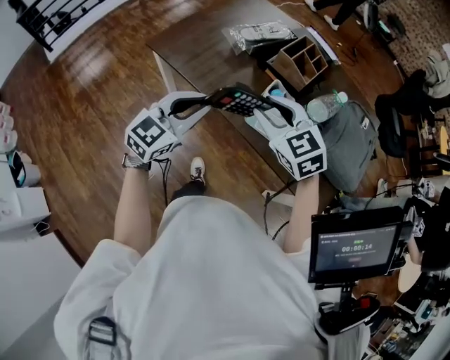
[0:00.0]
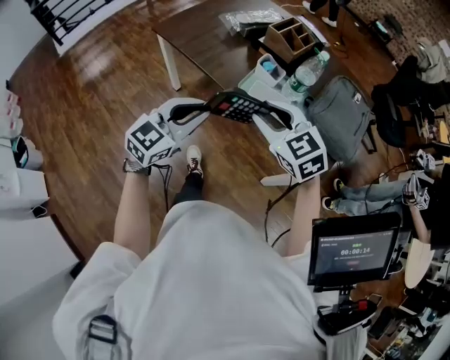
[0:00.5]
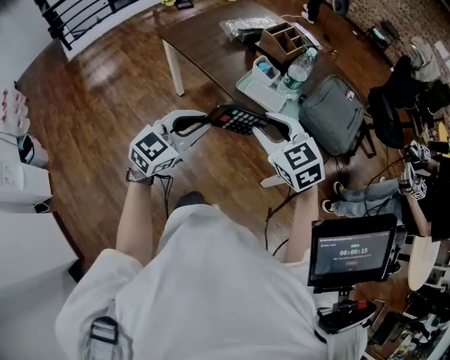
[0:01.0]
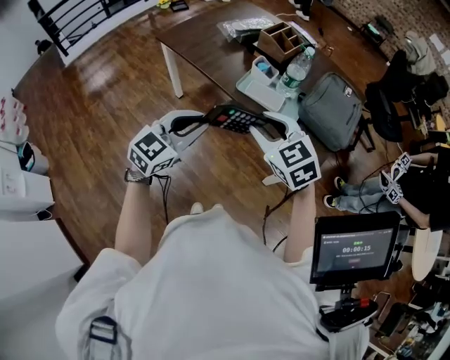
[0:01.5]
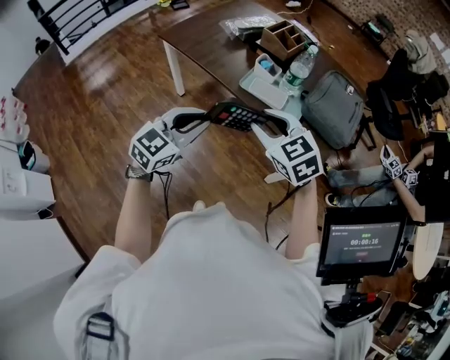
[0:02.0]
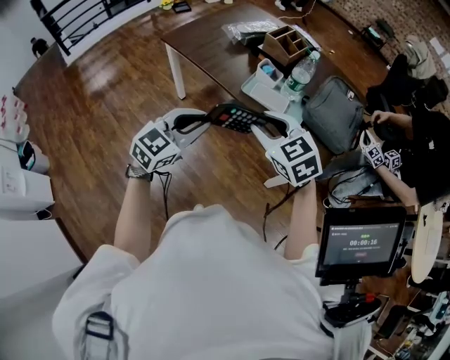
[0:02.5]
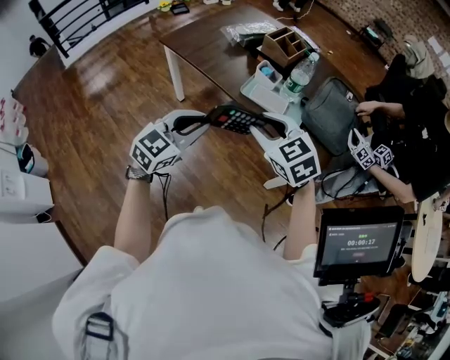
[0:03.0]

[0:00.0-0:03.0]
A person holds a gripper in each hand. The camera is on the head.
0:00.0 to 0:01.5: Both grippers move backward, roughly 25 cm.
0:01.5 to 0:03.0: There are only small adjustments of the grippers.

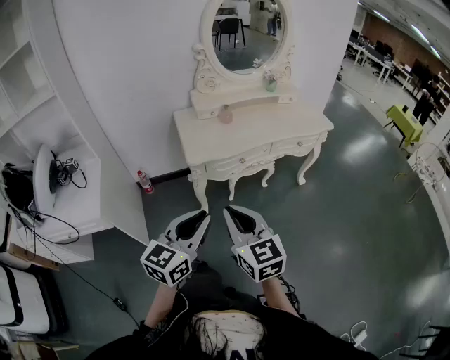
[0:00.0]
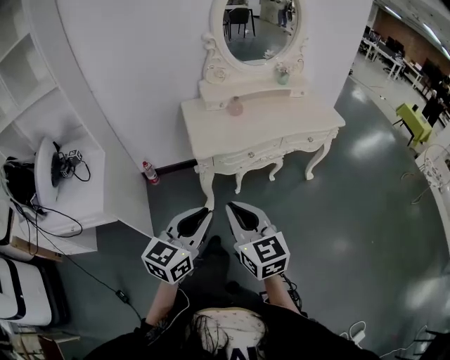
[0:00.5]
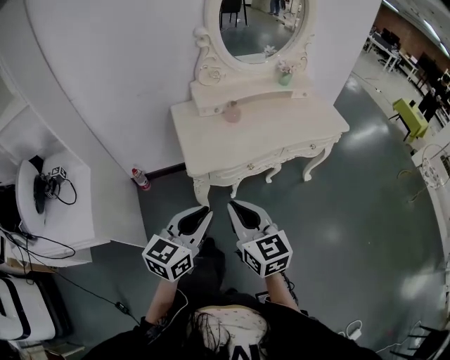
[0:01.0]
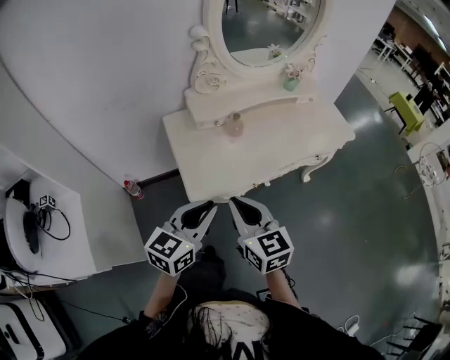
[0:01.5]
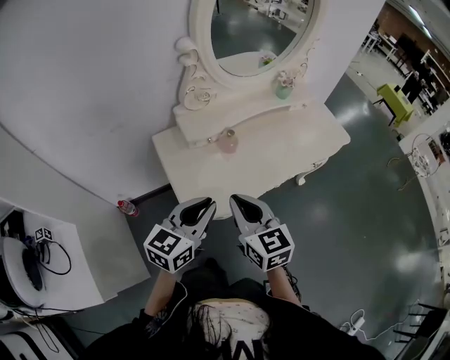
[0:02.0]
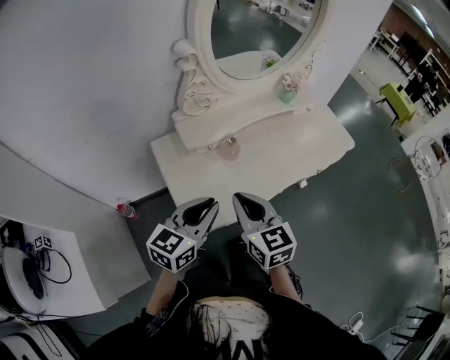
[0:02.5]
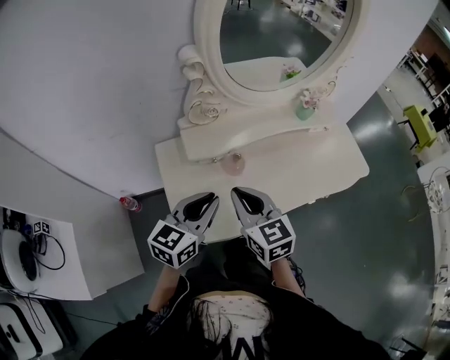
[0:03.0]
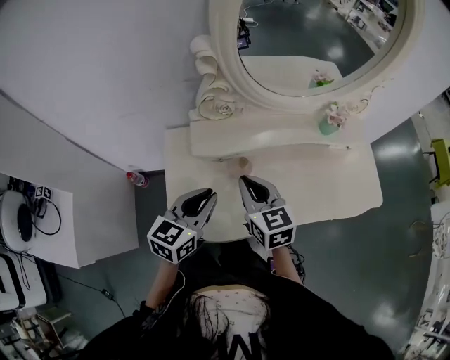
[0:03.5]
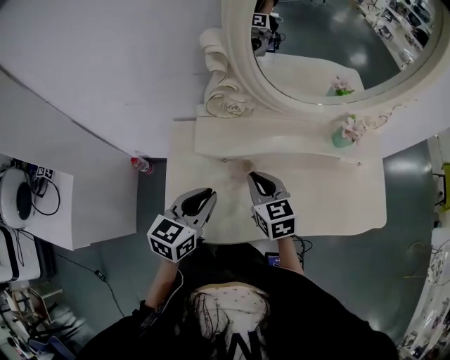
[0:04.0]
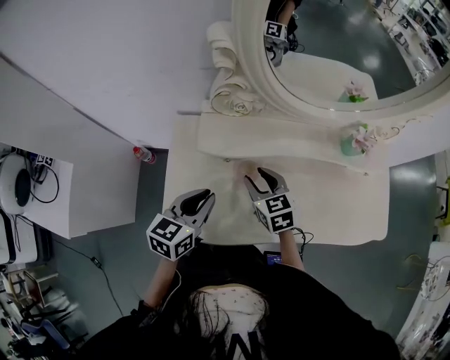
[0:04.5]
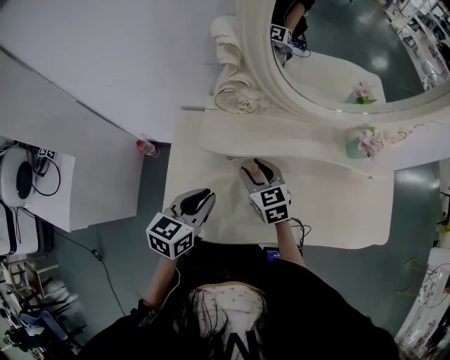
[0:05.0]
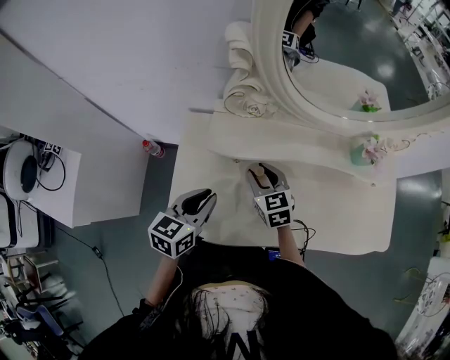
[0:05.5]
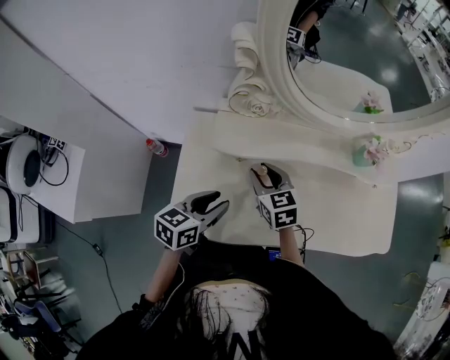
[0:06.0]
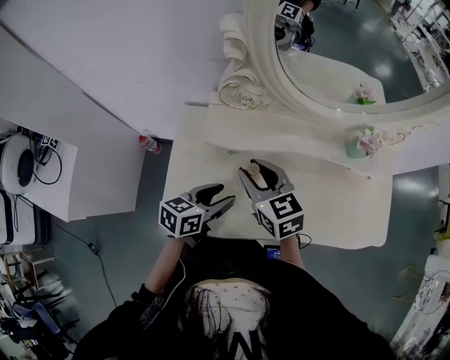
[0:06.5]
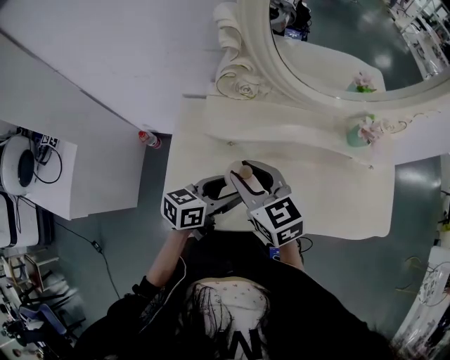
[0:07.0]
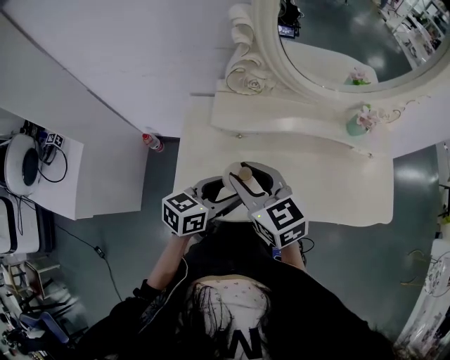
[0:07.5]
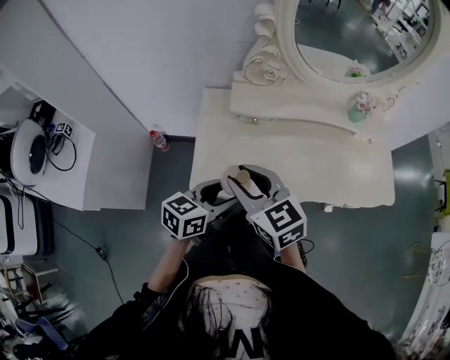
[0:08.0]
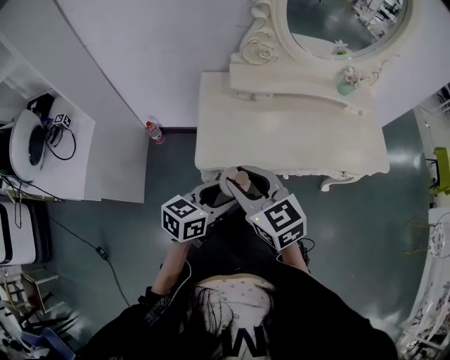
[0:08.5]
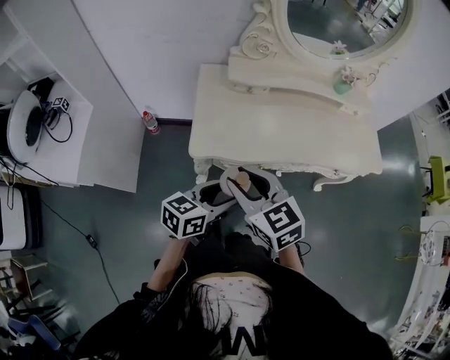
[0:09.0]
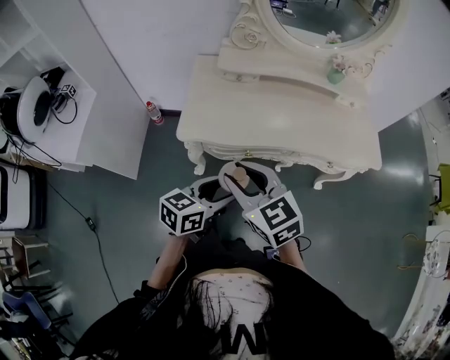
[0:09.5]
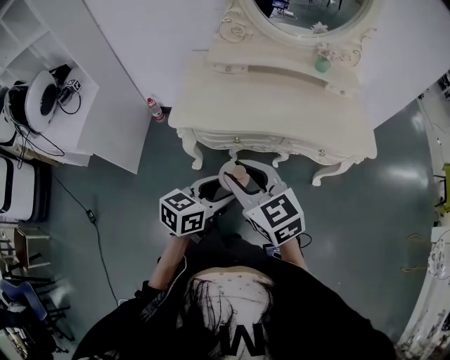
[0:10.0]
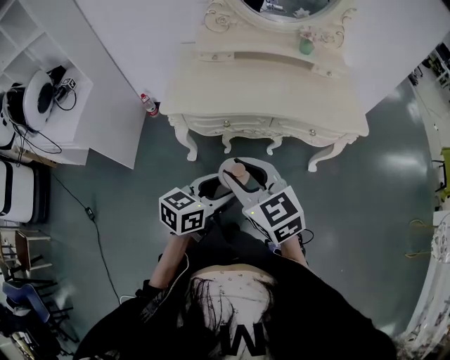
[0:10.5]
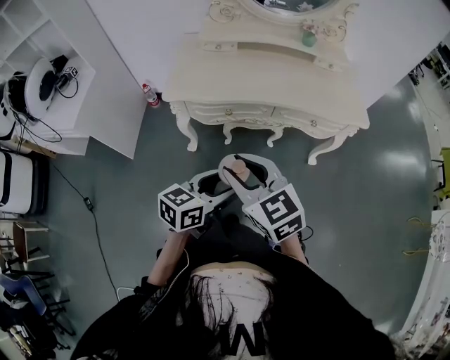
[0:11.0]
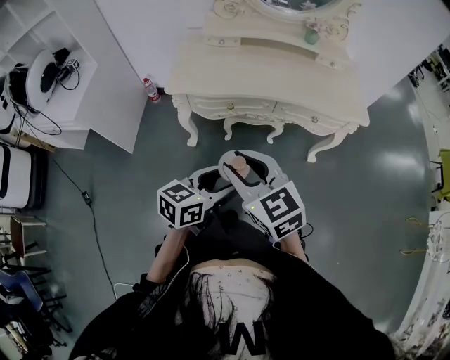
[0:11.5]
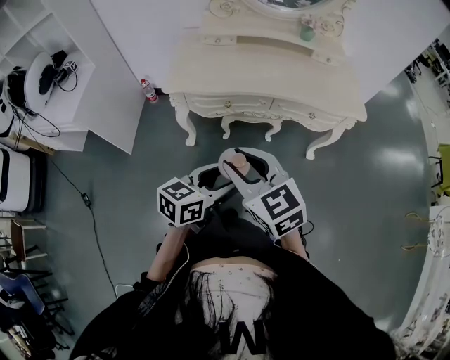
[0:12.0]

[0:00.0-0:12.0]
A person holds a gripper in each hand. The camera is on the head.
0:00.0 to 0:02.0: The two grippers go some 40 cm forward.
0:02.0 to 0:04.0: The left gripper ends up about 20 cm from where it was, and turns by about 30 degrees, while the right gripper moves roughly 30 cm, and changes its angle by roughly 30 degrees.
0:04.0 to 0:06.0: The right gripper shifts by some 5 cm, and opens; the left gripper moves downward, approximately 5 cm, and opens.
0:06.0 to 0:08.0: The left gripper goes approximately 15 cm backward, and opens its fingers. Meanwhile the right gripper heads backward, upward and to the left, covering some 30 cm.
0:08.0 to 0:10.0: Both grippers travel together backward and to the right, approximately 30 cm.
0:10.0 to 0:12.0: Both grippers move backward, about 10 cm.

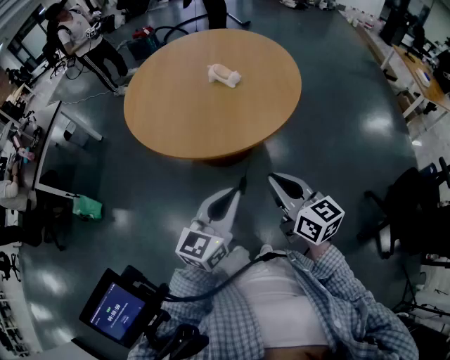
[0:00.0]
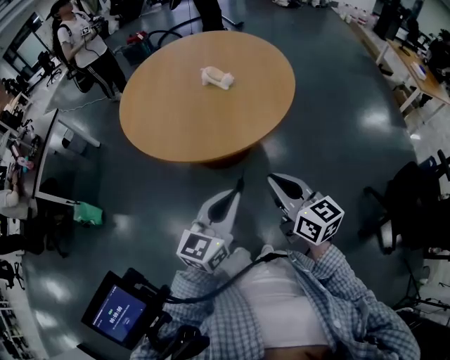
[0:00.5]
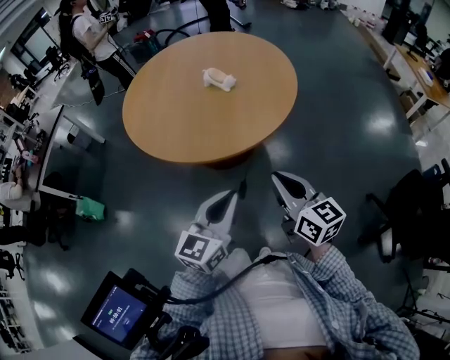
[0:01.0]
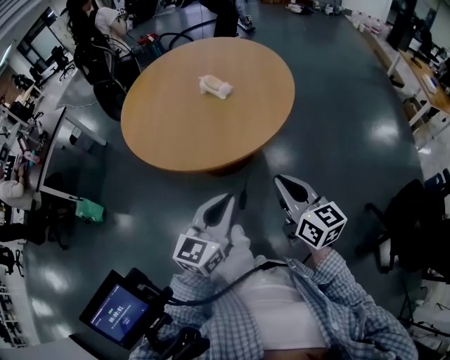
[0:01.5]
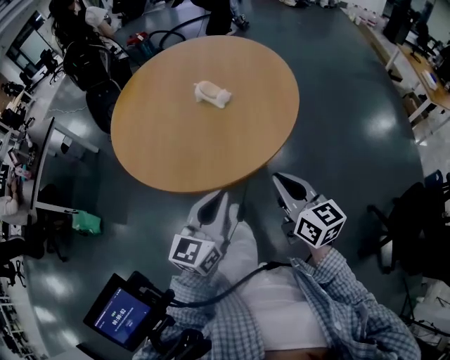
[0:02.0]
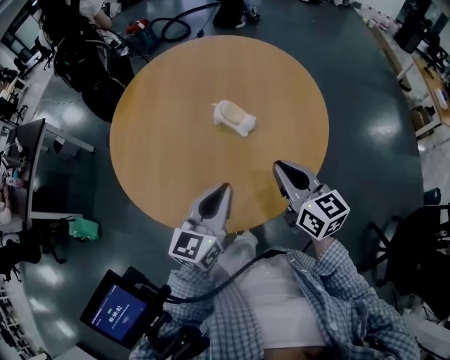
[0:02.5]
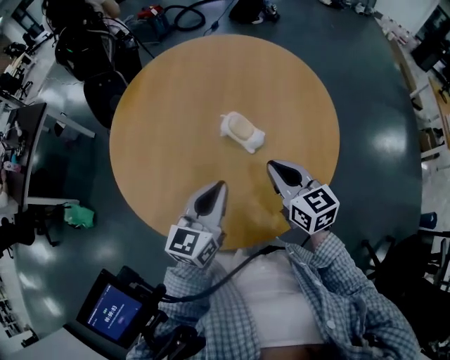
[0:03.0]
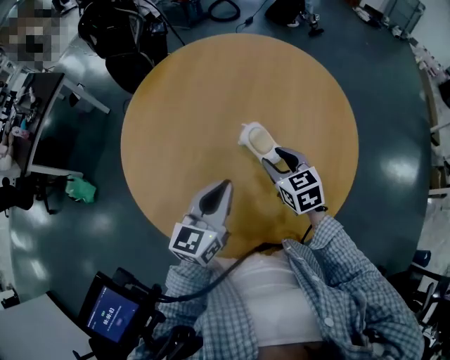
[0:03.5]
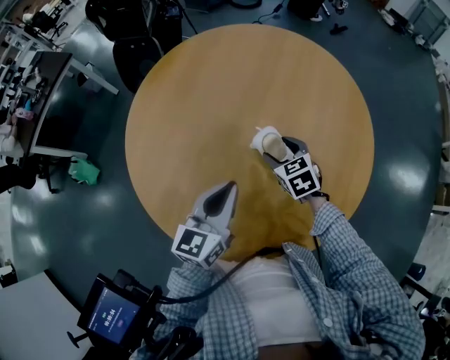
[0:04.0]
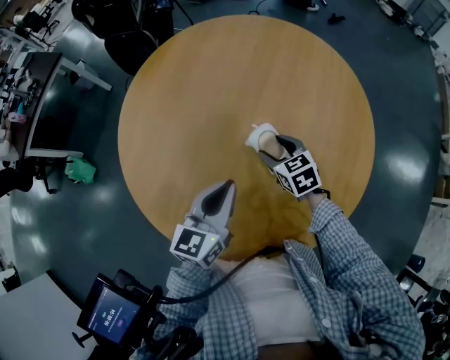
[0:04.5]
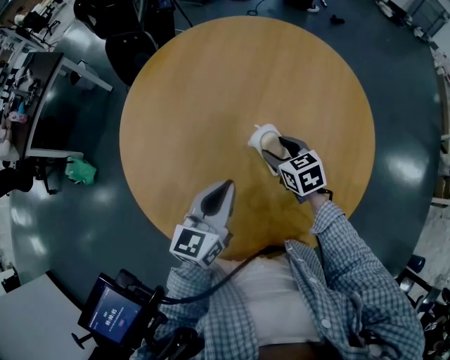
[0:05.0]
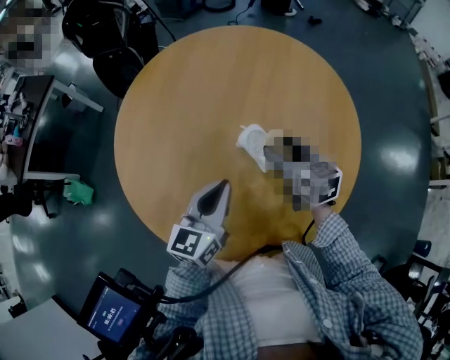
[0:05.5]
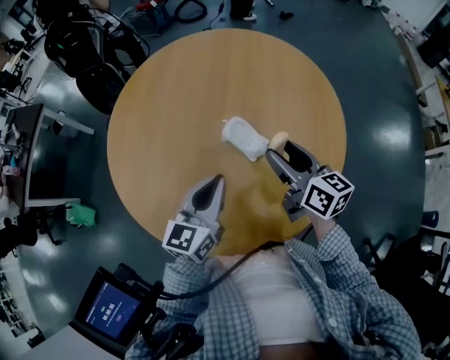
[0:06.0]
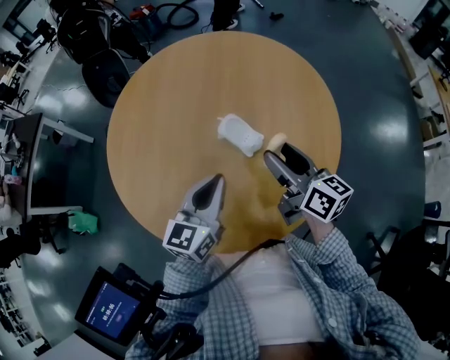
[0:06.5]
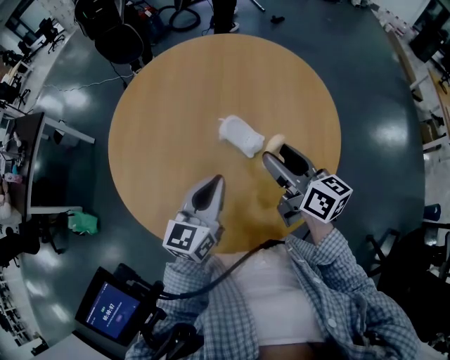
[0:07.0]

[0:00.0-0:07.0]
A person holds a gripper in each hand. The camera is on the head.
0:00.0 to 0:02.0: The right gripper travels forward and to the right by about 15 cm, while the left gripper heads forward, covering roughly 10 cm.
0:02.0 to 0:03.5: The two grippers go approximately 30 cm forward. The right gripper rotates some 40 degrees, and opens its fingers.
0:03.5 to 0:05.0: The right gripper shifts by roughly 5 cm.
0:05.0 to 0:07.0: The right gripper is displaced upward and backward by roughly 20 cm, and tips its fingers upward by approximately 40 degrees.

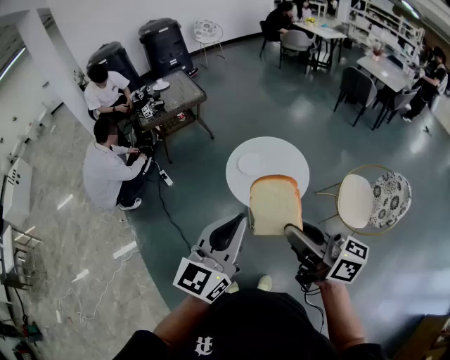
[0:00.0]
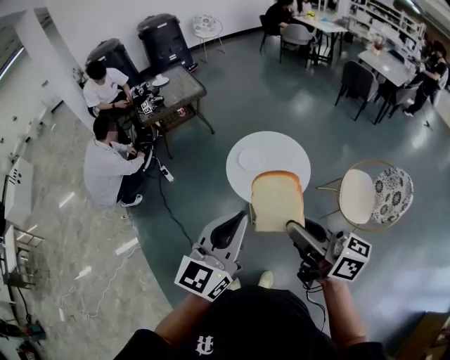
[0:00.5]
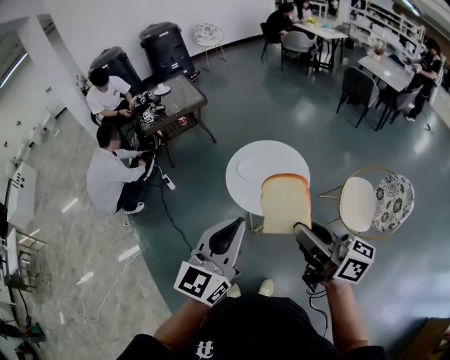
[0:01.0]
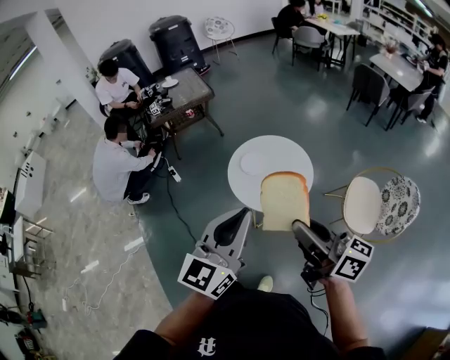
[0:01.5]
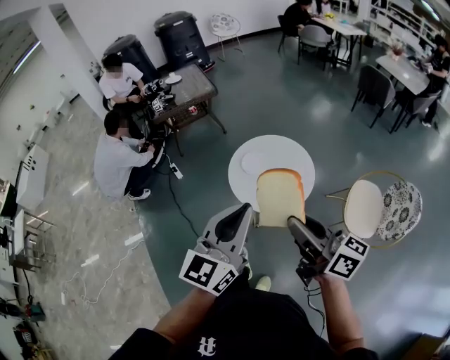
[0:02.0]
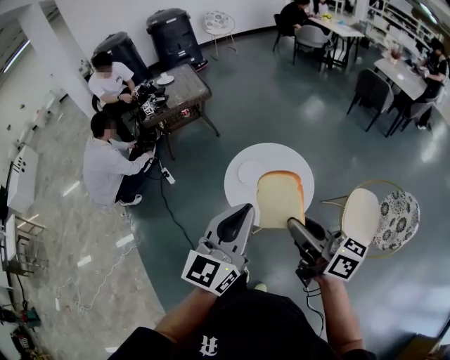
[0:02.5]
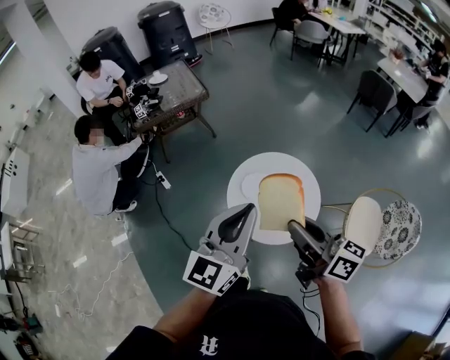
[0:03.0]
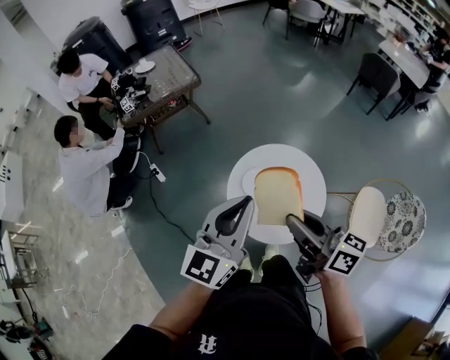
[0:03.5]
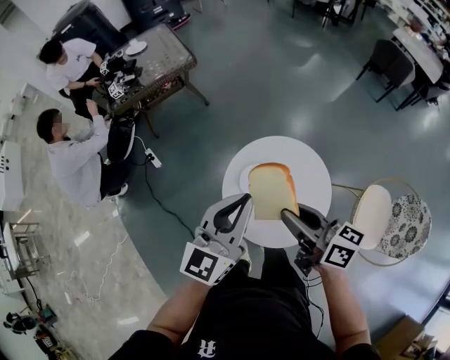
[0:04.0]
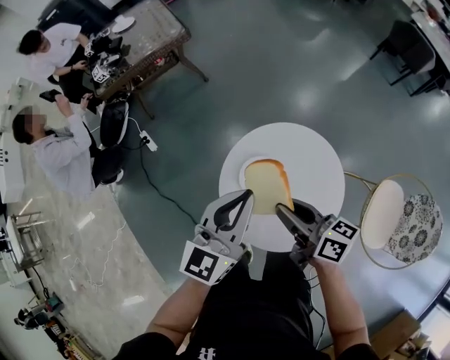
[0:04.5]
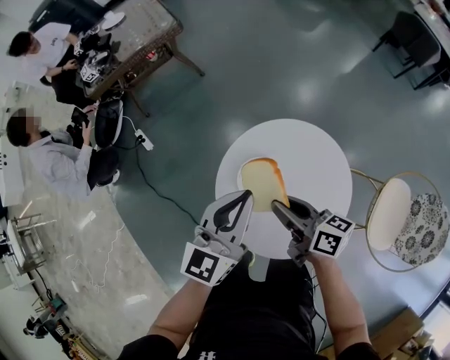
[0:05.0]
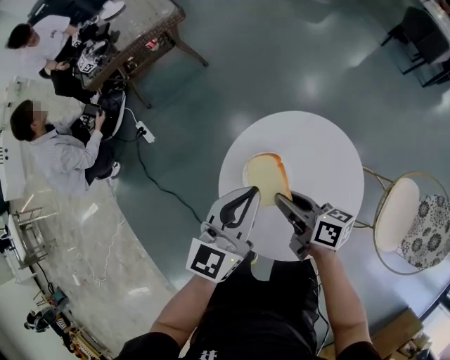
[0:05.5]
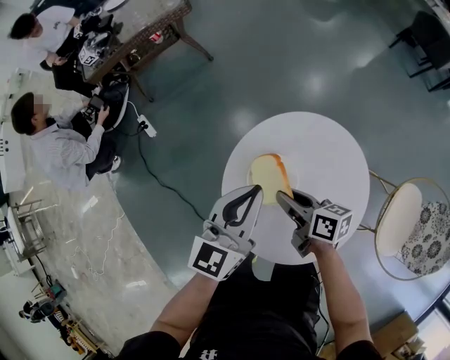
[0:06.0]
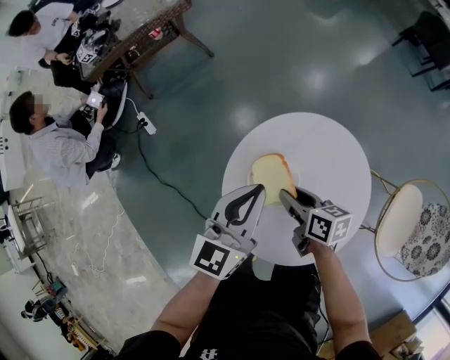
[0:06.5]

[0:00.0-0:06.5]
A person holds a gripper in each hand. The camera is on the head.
0:00.0 to 0:02.0: Both grippers travel together to the right, about 10 cm.
0:02.0 to 0:04.5: Both grippers travel together forward and downward, some 50 cm. The right gripper swivels some 30 degrees.
0:04.5 to 0:06.5: Both grippers move downward, roughly 20 cm. The right gripper rotates roughly 20 degrees.
